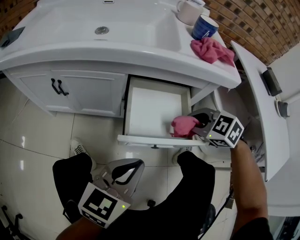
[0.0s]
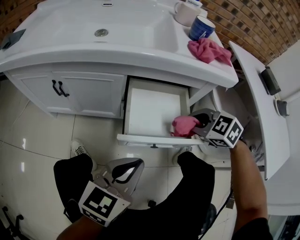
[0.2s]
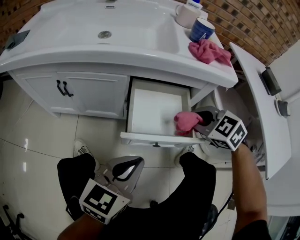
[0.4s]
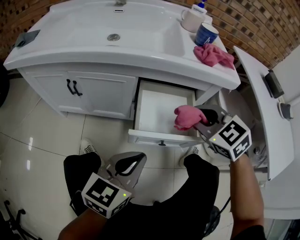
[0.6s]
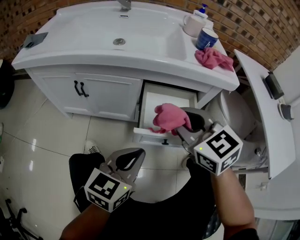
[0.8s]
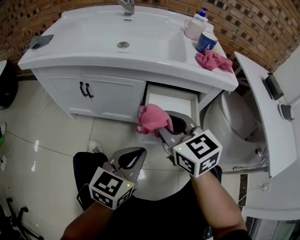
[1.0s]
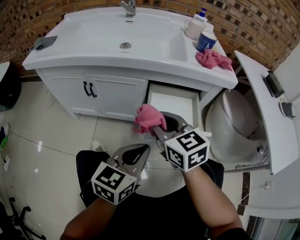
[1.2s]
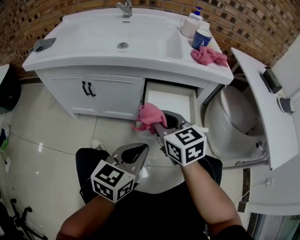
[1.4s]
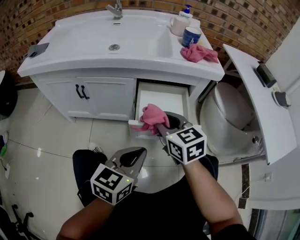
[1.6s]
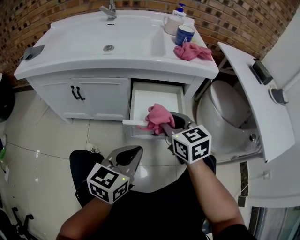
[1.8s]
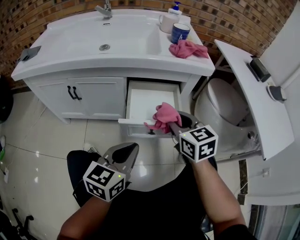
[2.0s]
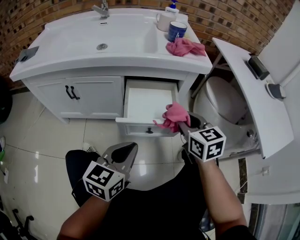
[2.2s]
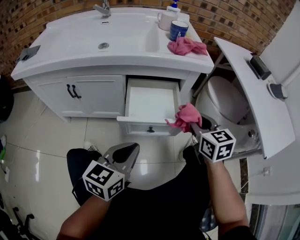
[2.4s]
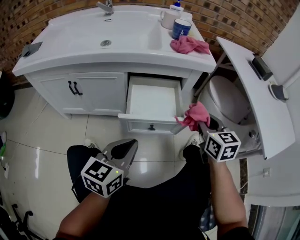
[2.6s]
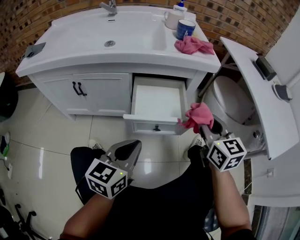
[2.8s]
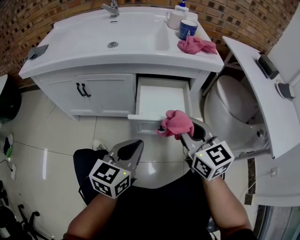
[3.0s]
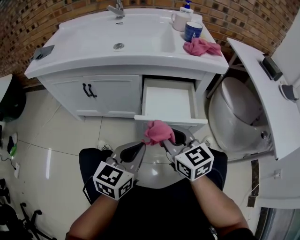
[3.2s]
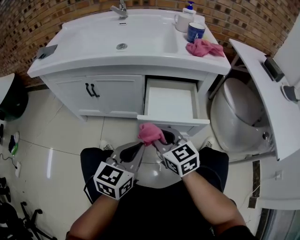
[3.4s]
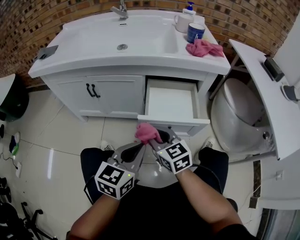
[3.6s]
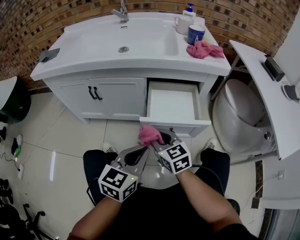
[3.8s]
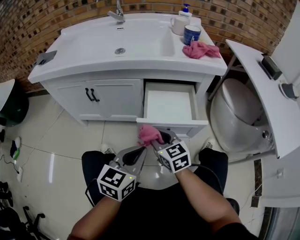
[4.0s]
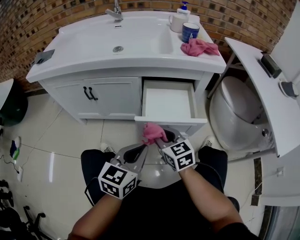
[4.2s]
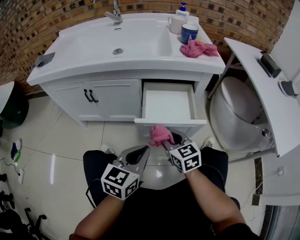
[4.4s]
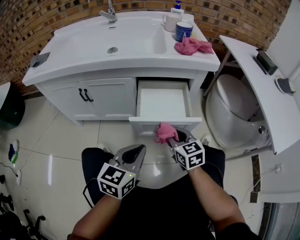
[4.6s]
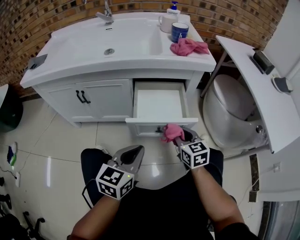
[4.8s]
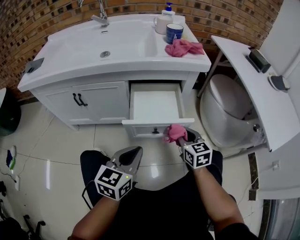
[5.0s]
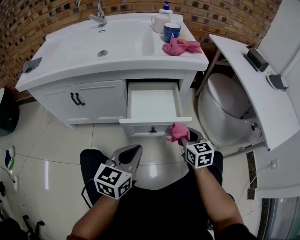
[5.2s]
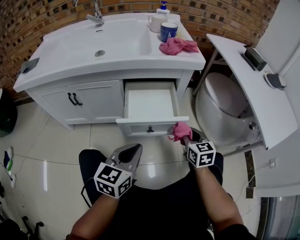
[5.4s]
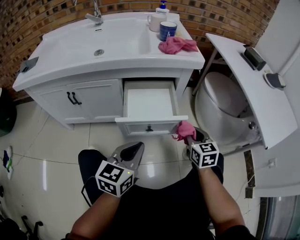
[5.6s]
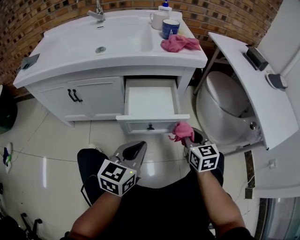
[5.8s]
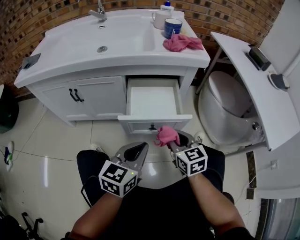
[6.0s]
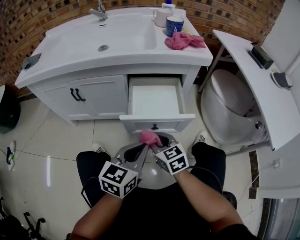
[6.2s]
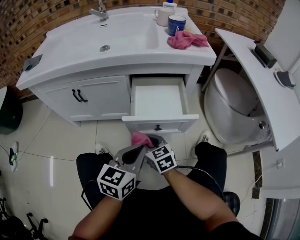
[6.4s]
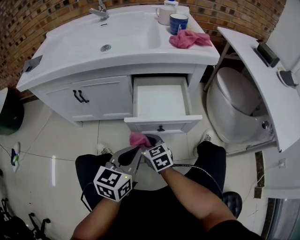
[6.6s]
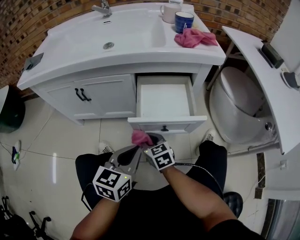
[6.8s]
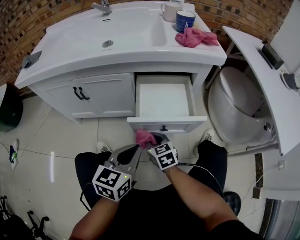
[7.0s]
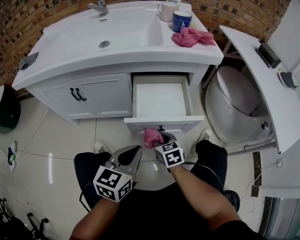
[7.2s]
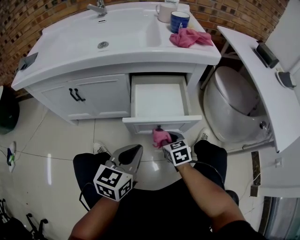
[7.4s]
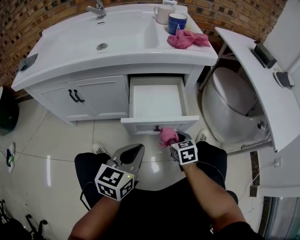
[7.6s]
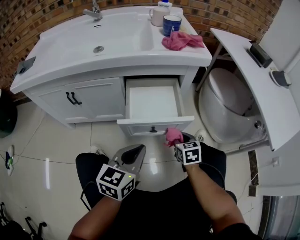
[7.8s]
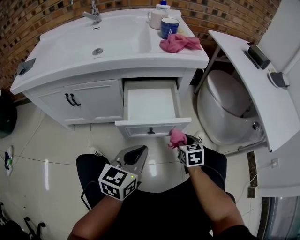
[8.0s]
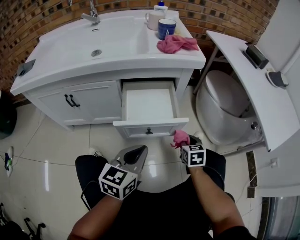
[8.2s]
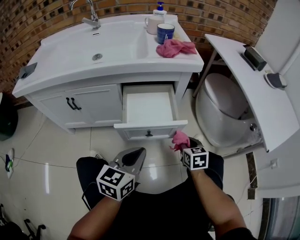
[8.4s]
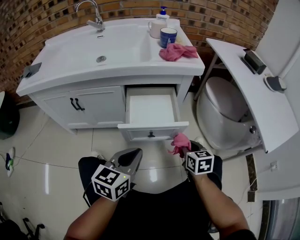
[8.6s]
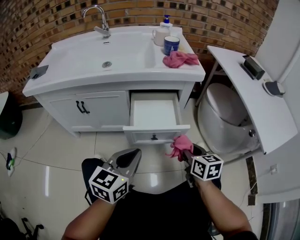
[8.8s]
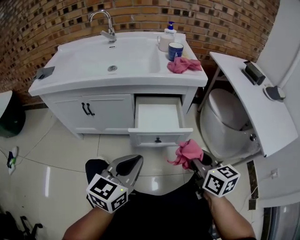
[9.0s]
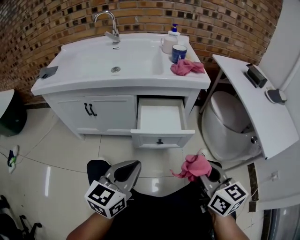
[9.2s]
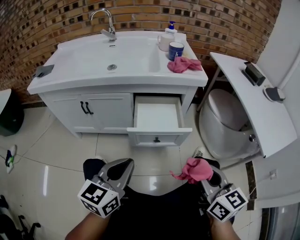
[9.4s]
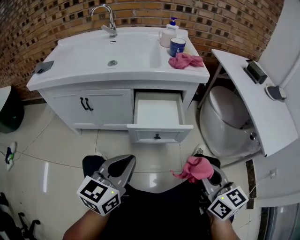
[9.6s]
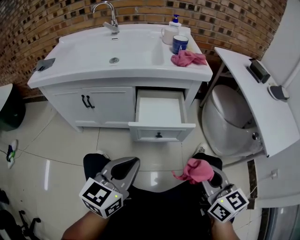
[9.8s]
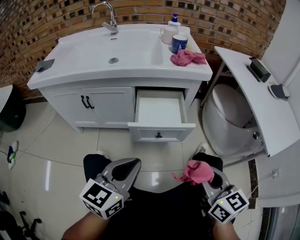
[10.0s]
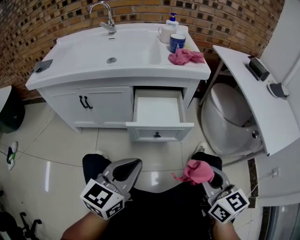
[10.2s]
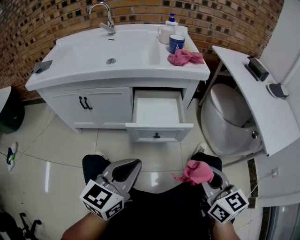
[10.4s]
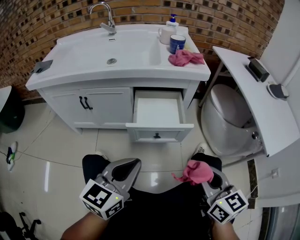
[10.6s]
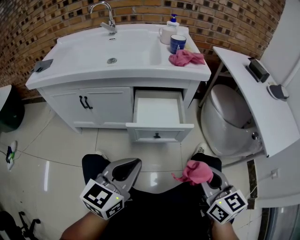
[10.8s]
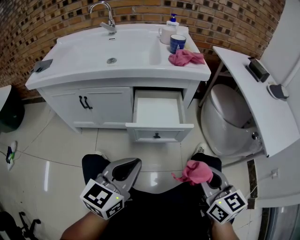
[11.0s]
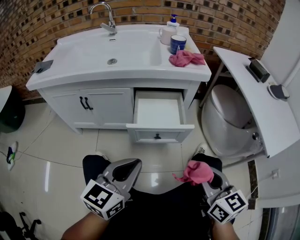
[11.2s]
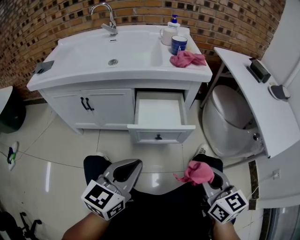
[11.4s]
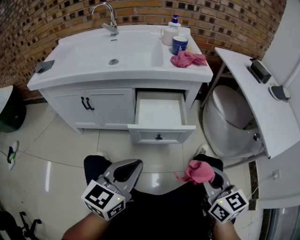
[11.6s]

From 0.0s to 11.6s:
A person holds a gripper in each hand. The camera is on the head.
From 0.0s to 1.4s: The right gripper moves to the left and upward, about 20 cm, and tips its fingers upward by about 30 degrees.
From 1.4s to 2.8s: The right gripper moves to the right, approximately 20 cm, and changes its angle by roughly 20 degrees.
From 2.8s to 4.4s: The right gripper heads to the left and downward, covering about 20 cm.
From 4.4s to 5.8s: The right gripper heads to the right, covering some 15 cm. The left gripper heads to the right, covering roughly 5 cm.
From 5.8s to 7.2s: The right gripper goes about 20 cm to the left and downward. The left gripper travels to the left by roughly 5 cm.
From 7.2s to 8.8s: The left gripper shifts approximately 10 cm upward. The right gripper heads to the right and upward, covering some 20 cm.
From 8.8s to 10.2s: The left gripper goes some 5 cm backward, while the right gripper heads backward and upward, covering roughly 15 cm.
From 10.2s to 11.6s: The two grippers keep their place.

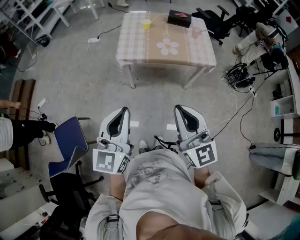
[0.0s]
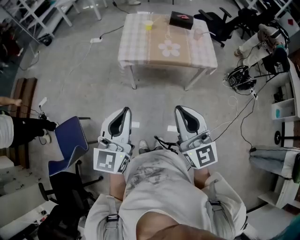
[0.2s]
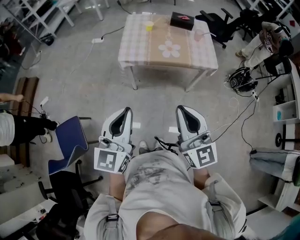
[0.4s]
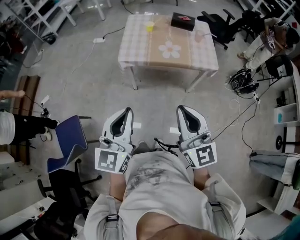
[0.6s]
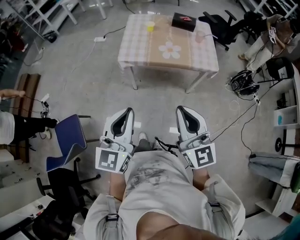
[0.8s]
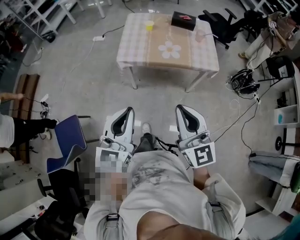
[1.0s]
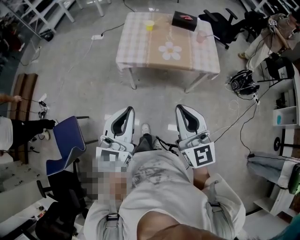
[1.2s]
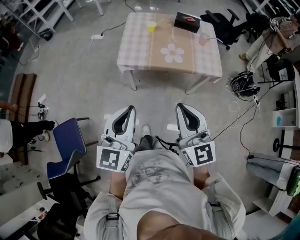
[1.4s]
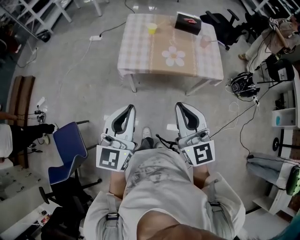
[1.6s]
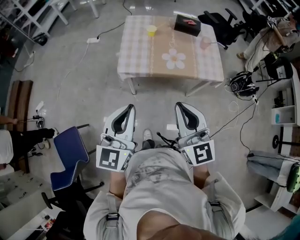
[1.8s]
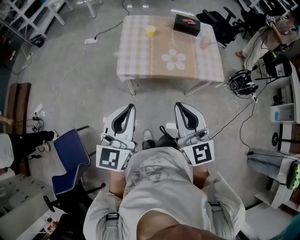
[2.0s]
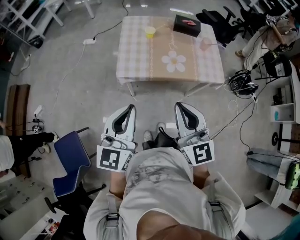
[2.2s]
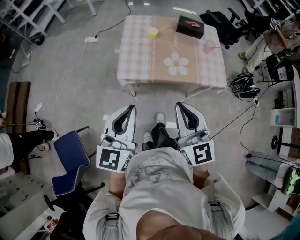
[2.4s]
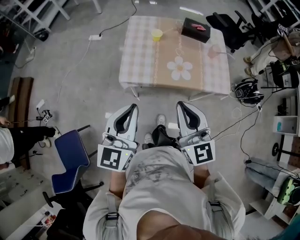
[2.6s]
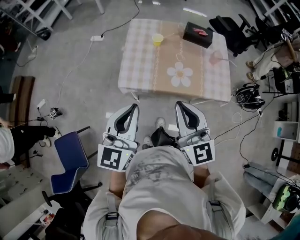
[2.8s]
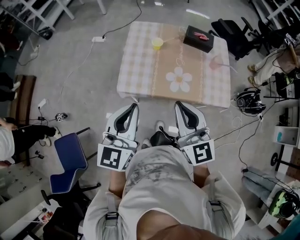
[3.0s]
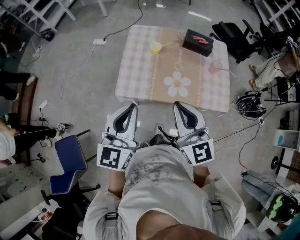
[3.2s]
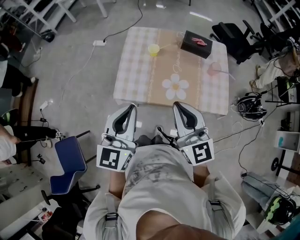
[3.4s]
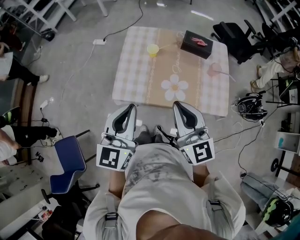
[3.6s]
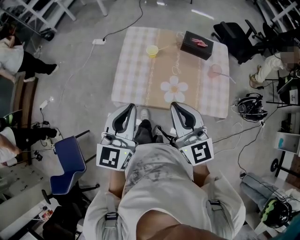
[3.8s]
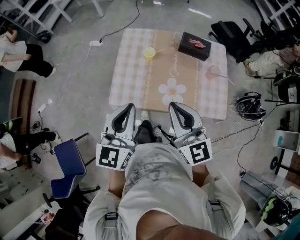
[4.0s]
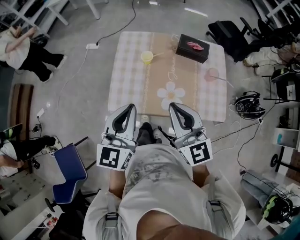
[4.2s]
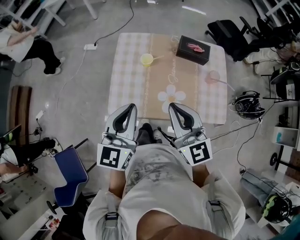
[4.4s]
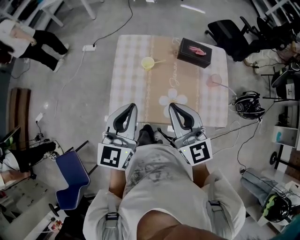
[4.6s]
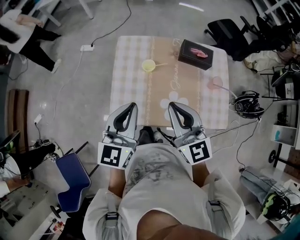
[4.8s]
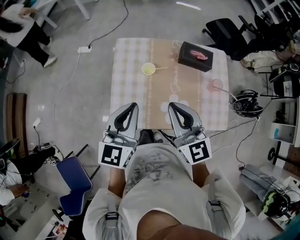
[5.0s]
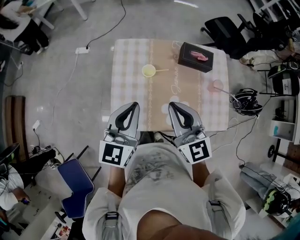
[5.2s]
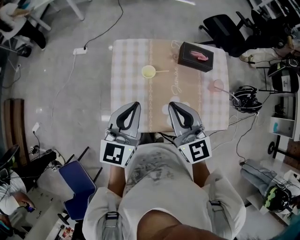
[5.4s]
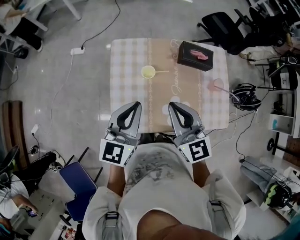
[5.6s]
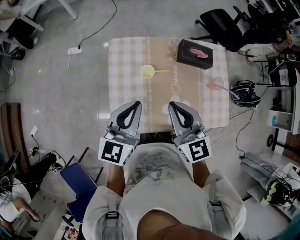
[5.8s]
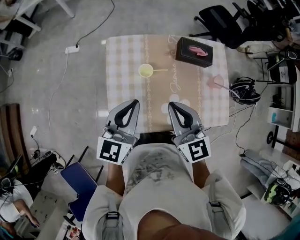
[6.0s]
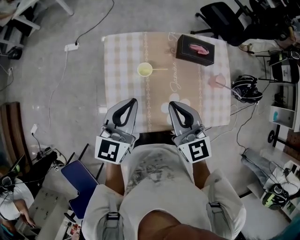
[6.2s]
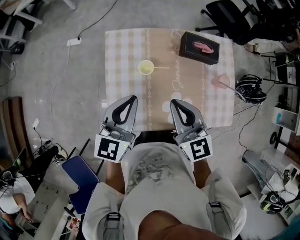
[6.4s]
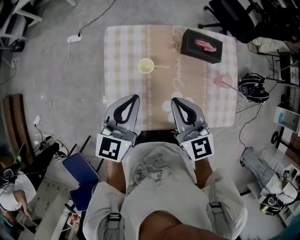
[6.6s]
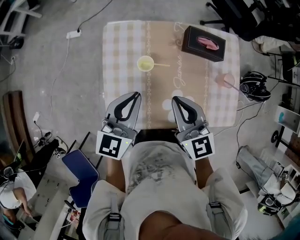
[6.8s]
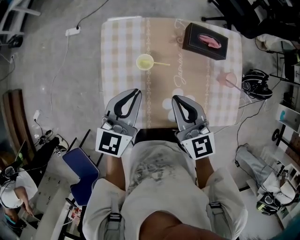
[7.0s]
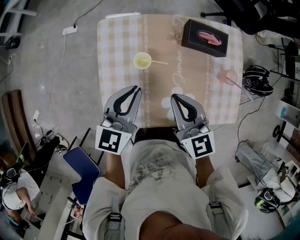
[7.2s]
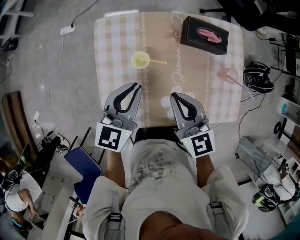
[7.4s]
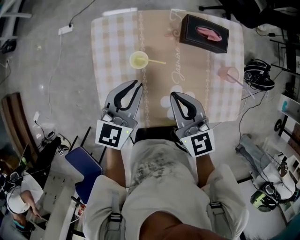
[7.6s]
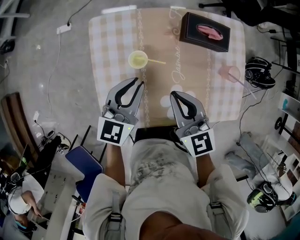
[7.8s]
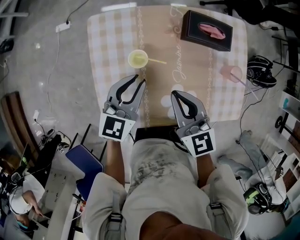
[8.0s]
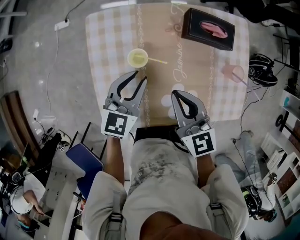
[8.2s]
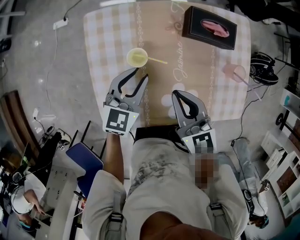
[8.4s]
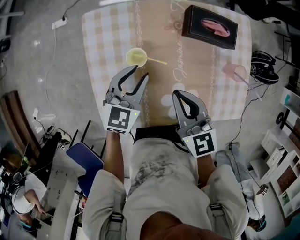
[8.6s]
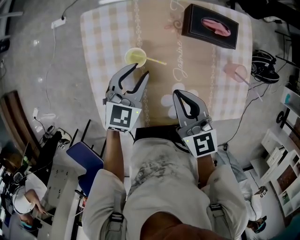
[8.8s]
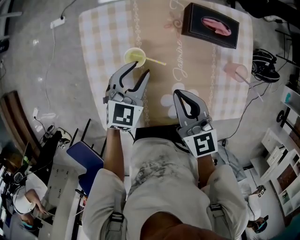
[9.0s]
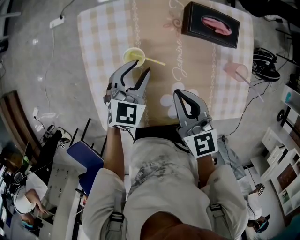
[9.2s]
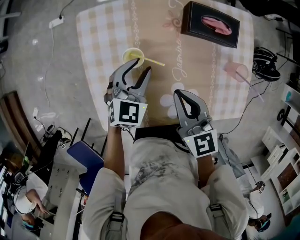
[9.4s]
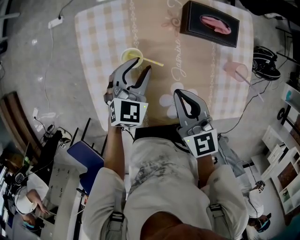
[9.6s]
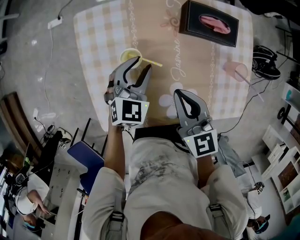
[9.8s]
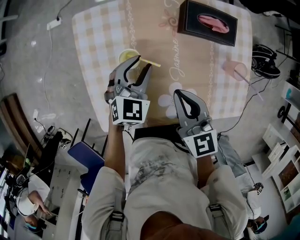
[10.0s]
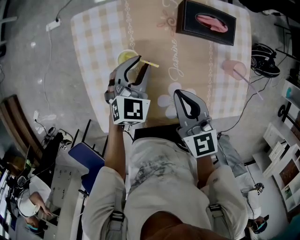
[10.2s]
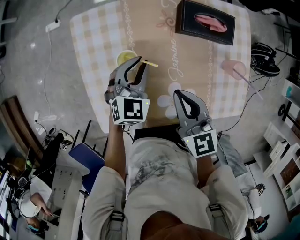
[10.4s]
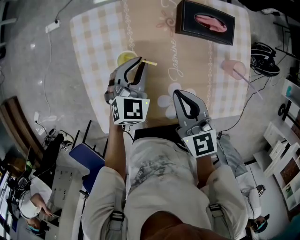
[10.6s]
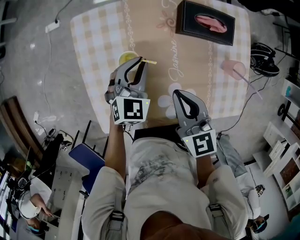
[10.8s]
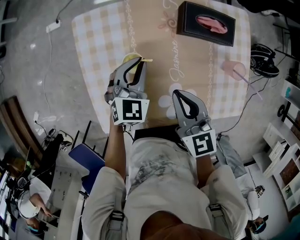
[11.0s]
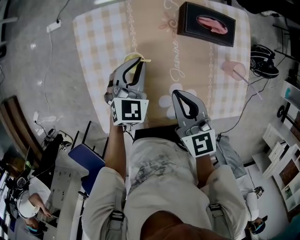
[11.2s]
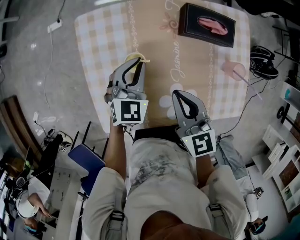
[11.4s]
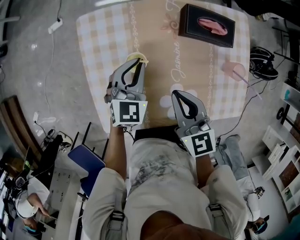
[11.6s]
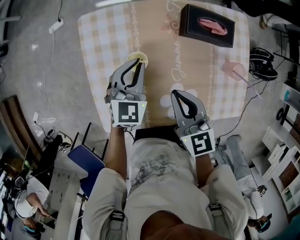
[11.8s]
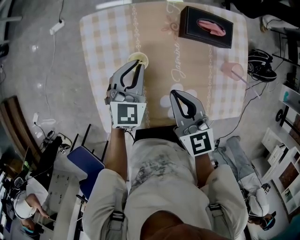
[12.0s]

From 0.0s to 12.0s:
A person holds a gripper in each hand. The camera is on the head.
From 0.0s to 1.6s: Both grippers travel together forward, roughly 15 cm.
From 1.6s to 3.0s: The two grippers go approximately 25 cm forward.
From 3.0s to 4.4s: Both grippers travel together forward, approximately 15 cm.
From 4.4s to 6.0s: The right gripper shifts approximately 15 cm forward and downward. Meanwhile the left gripper shifts approximately 15 cm forward.
From 6.0s to 7.6s: The right gripper moves downward and forward, approximately 10 cm, while the left gripper goes about 15 cm downward, forward and to the right.
From 7.6s to 9.0s: The right gripper shifts roughly 5 cm downward. The left gripper heads downward, covering about 10 cm, turns by about 20 degrees, and opens.
From 9.0s to 10.4s: The grippers move only a little.
From 10.4s to 12.0s: The left gripper travels upward by roughly 5 cm.
